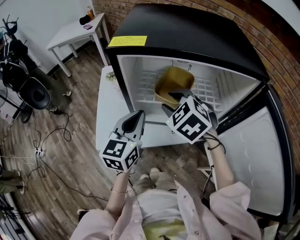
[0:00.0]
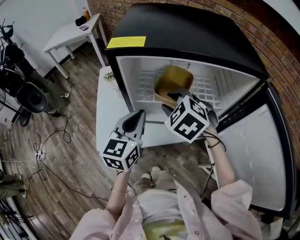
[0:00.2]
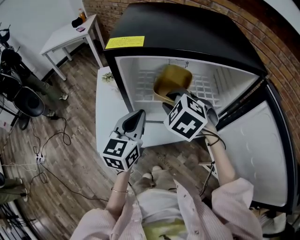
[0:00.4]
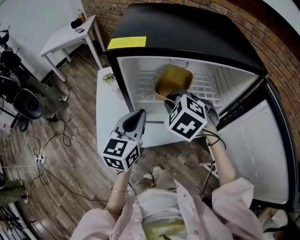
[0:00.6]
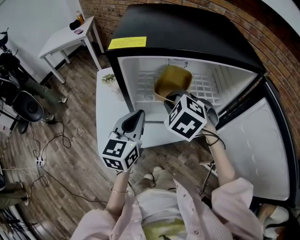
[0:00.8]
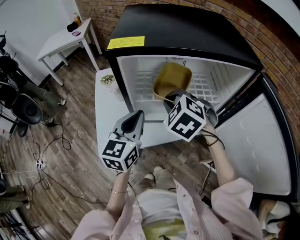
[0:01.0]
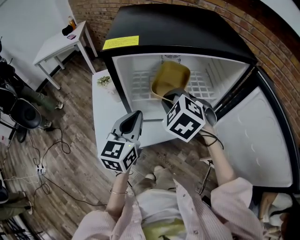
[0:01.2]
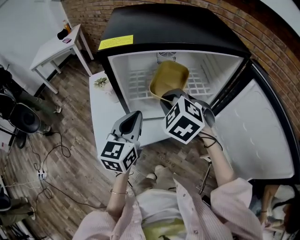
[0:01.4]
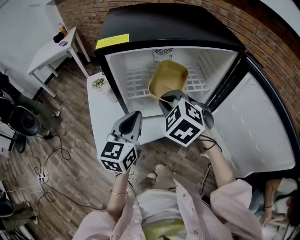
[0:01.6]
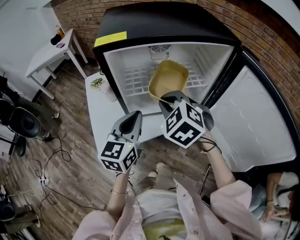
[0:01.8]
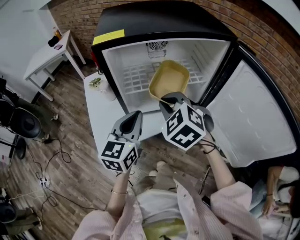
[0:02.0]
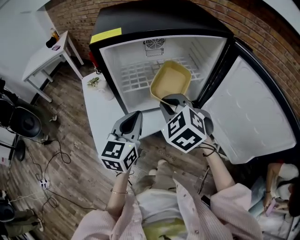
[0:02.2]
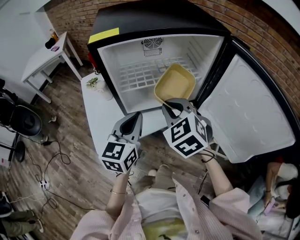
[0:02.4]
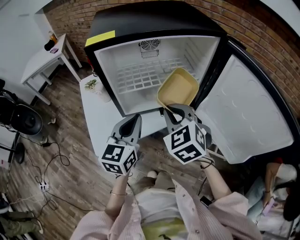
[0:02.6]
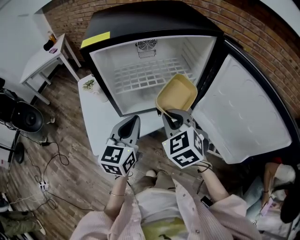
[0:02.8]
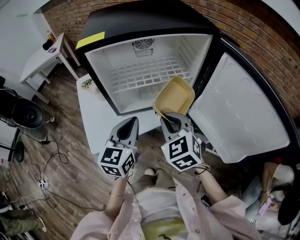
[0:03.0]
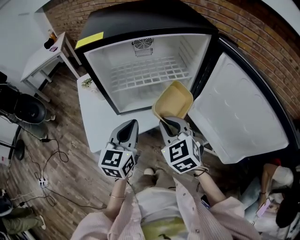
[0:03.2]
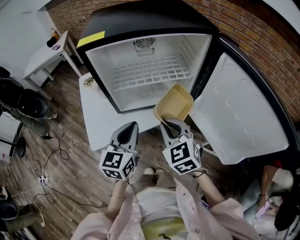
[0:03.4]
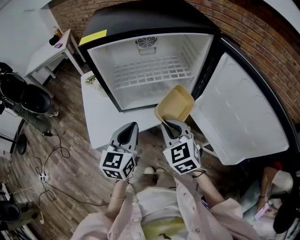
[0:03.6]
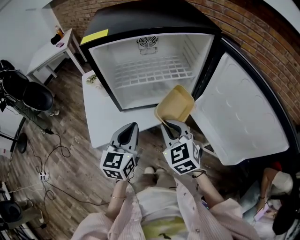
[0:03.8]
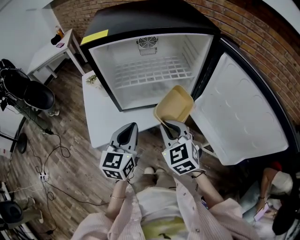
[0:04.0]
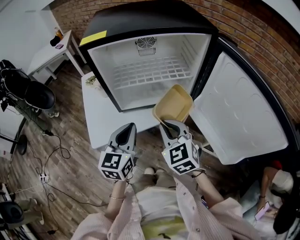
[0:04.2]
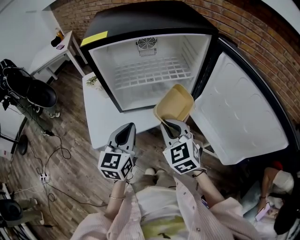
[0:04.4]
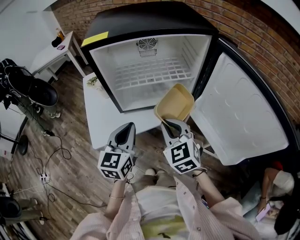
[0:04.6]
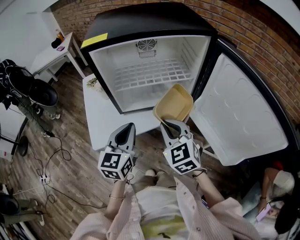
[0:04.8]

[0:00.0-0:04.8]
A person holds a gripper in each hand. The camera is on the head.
0:00.0 to 0:01.6: The right gripper closes.
0:01.6 to 0:03.2: The right gripper travels backward and to the right by about 15 cm, and turns by some 20 degrees, while the left gripper goes about 5 cm backward.
0:03.2 to 0:04.8: The grippers stay close to where they were, moving slightly.

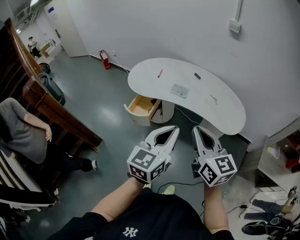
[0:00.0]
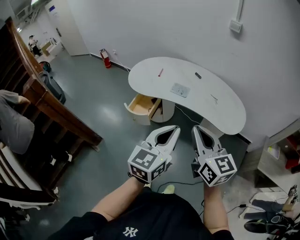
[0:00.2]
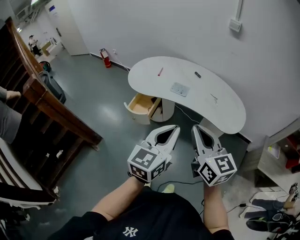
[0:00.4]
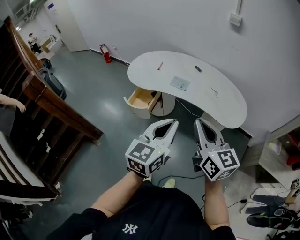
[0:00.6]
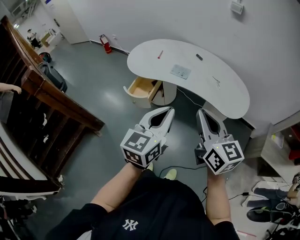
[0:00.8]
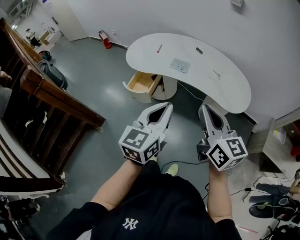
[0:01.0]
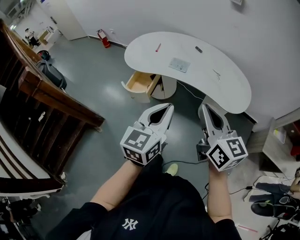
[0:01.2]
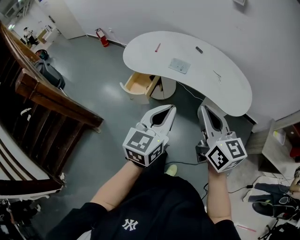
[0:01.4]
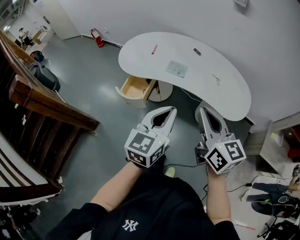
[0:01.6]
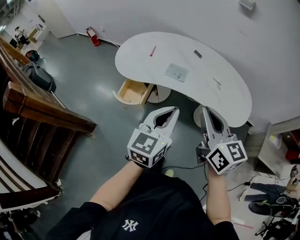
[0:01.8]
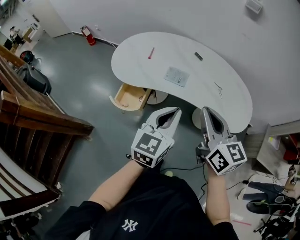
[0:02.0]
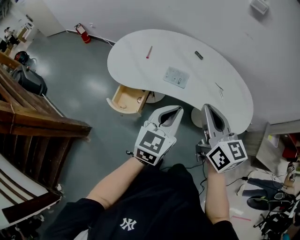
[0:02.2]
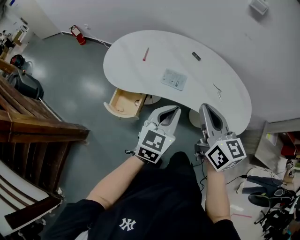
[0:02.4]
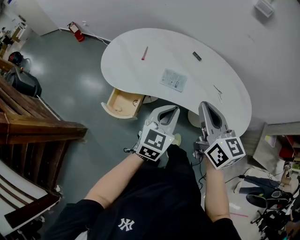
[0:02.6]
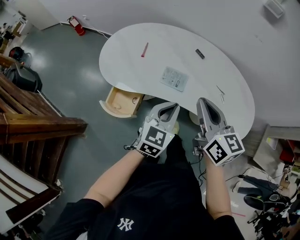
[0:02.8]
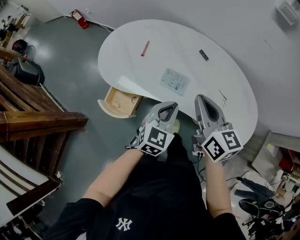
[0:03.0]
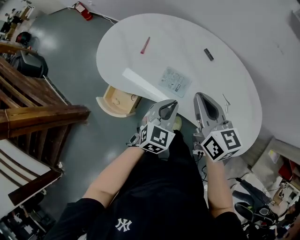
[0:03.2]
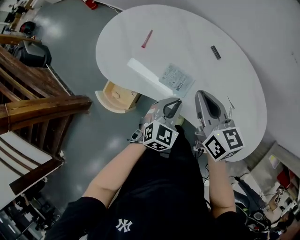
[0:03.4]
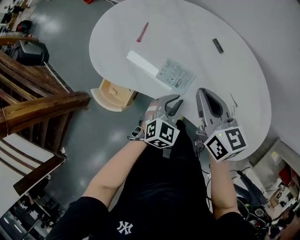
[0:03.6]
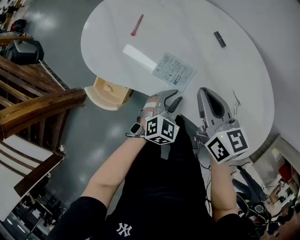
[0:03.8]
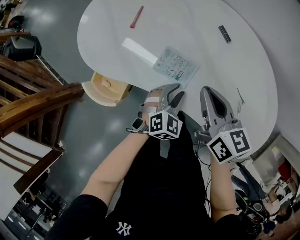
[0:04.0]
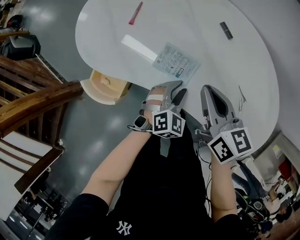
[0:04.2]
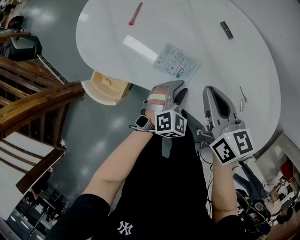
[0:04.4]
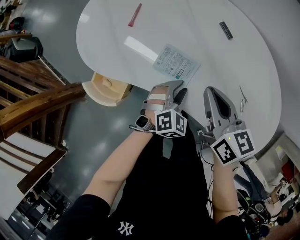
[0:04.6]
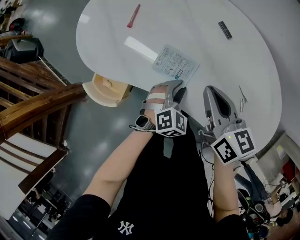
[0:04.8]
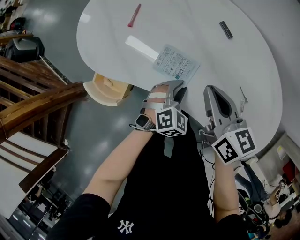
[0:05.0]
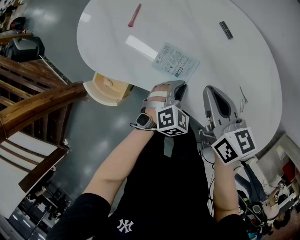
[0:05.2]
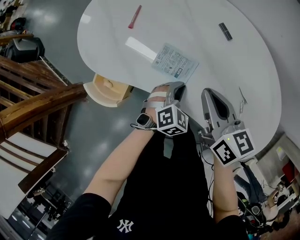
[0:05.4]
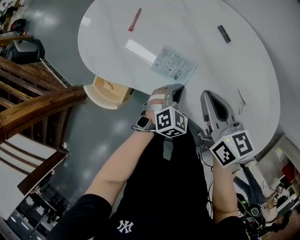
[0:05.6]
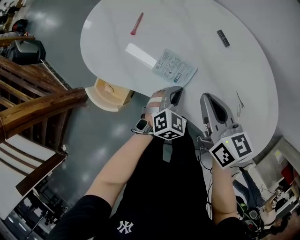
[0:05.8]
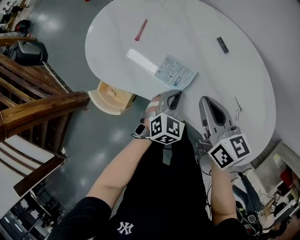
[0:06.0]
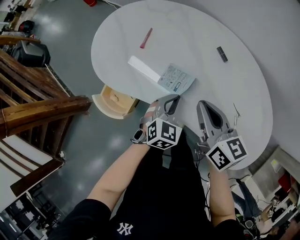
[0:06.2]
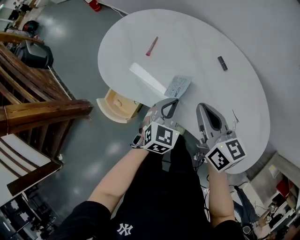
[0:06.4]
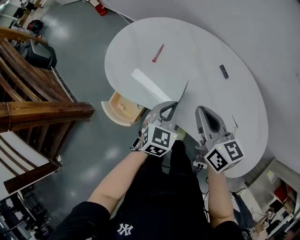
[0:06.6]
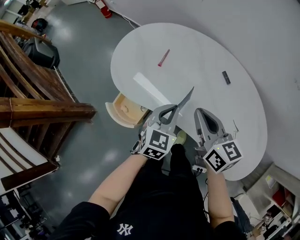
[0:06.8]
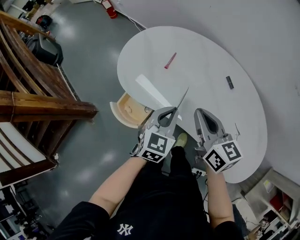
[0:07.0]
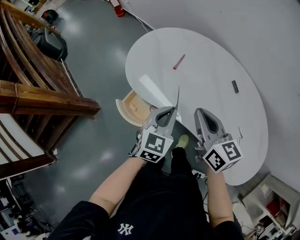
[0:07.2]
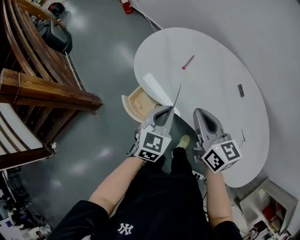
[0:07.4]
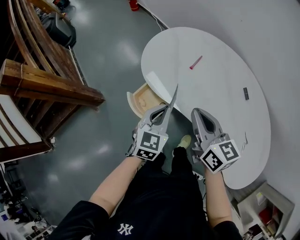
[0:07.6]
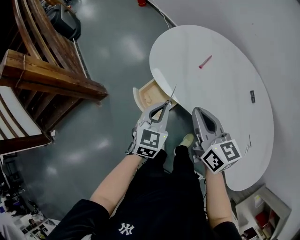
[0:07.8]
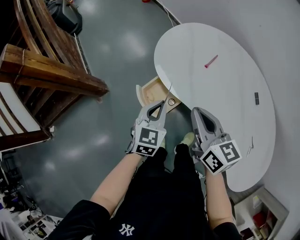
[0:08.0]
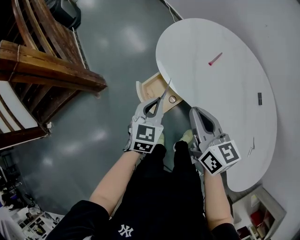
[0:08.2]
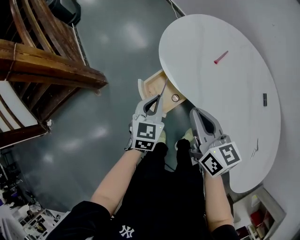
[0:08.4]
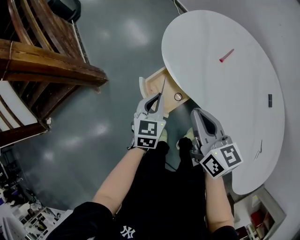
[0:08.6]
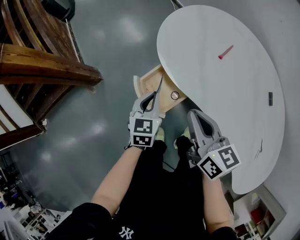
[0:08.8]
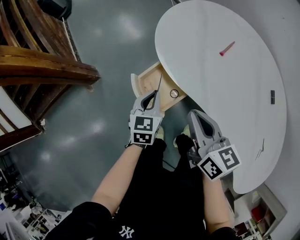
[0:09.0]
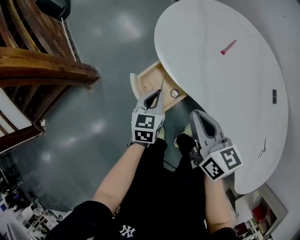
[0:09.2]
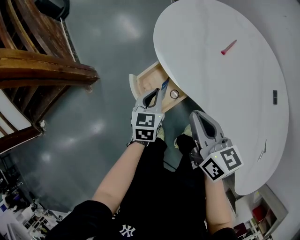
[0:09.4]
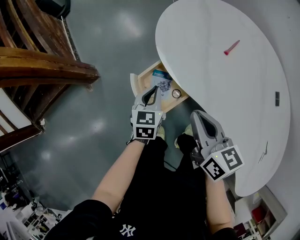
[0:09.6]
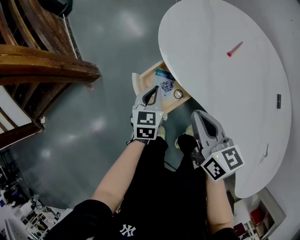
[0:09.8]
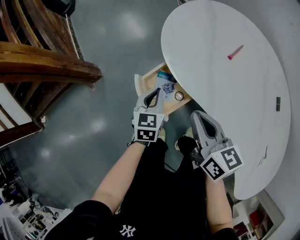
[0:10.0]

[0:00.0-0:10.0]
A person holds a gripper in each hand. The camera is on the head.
0:00.0 to 0:01.4: The left gripper is displaced forward by approximately 5 cm. The right gripper shifts by about 5 cm.
0:01.4 to 0:02.8: The left gripper moves forward and downward, some 35 cm; the right gripper moves forward, roughly 30 cm.
0:02.8 to 0:04.2: Both grippers travel together downward and forward, roughly 25 cm. The left gripper swivels some 30 degrees, and opens its fingers.
0:04.2 to 0:05.8: The left gripper closes up.
0:05.8 to 0:07.2: The left gripper moves upward and to the left, approximately 25 cm, and rotates approximately 30 degrees; the right gripper heads to the left and upward, covering about 15 cm.
0:07.2 to 0:08.6: Both grippers move to the left and downward, roughly 25 cm. The left gripper turns by some 30 degrees.
0:08.6 to 0:10.0: The two grippers go roughly 10 cm downward.

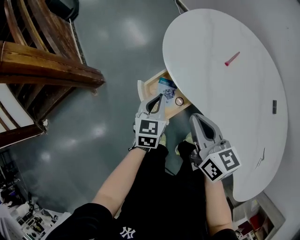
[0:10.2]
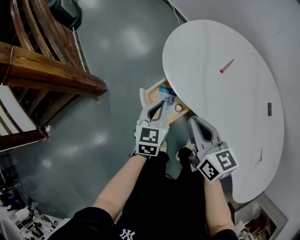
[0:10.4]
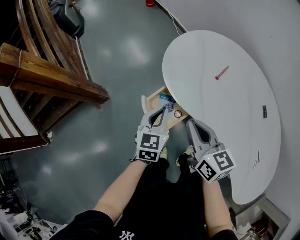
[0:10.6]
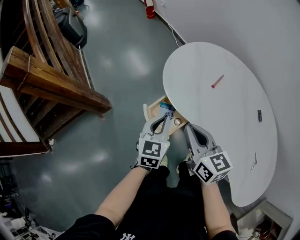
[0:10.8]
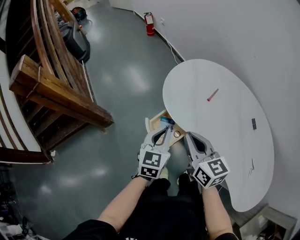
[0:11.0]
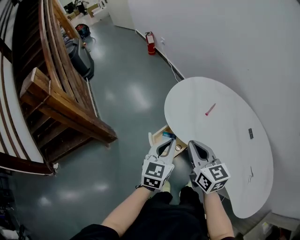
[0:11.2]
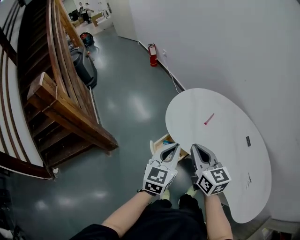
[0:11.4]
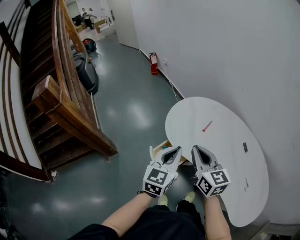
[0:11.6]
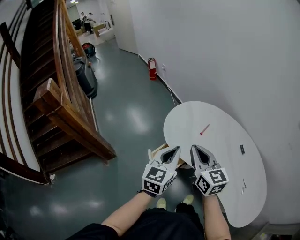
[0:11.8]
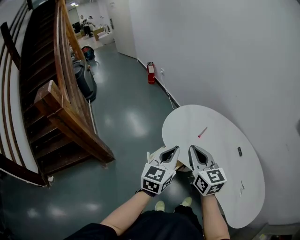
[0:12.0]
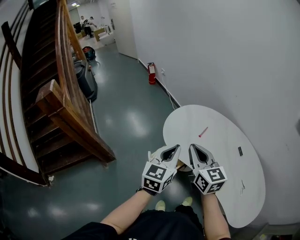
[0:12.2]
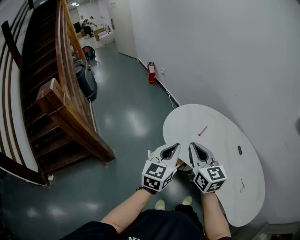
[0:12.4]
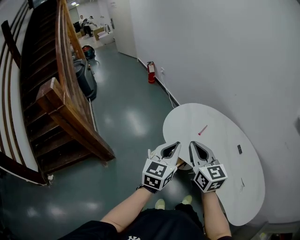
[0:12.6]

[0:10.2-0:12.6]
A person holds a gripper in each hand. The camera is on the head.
0:10.2 to 0:11.4: The right gripper shifts roughly 20 cm upward. The left gripper heads upward, covering some 30 cm, and turns by about 20 degrees.
0:11.4 to 0:12.6: The grippers both shift upward by roughly 5 cm.

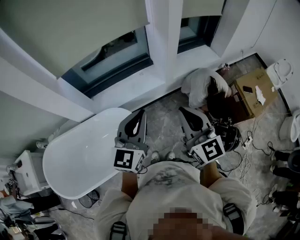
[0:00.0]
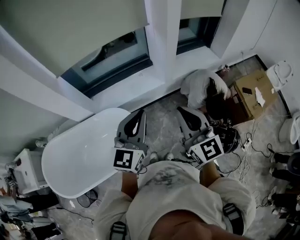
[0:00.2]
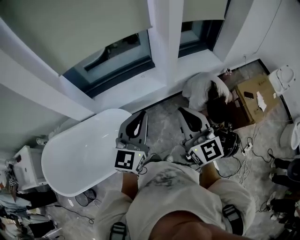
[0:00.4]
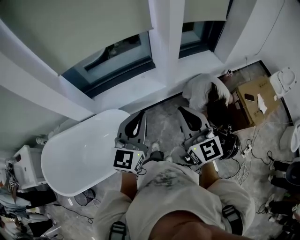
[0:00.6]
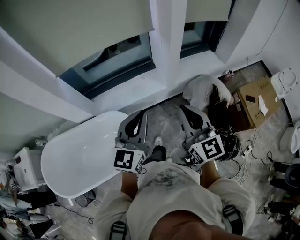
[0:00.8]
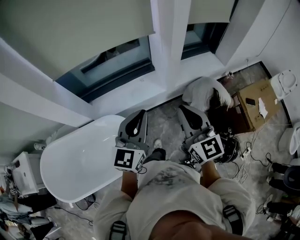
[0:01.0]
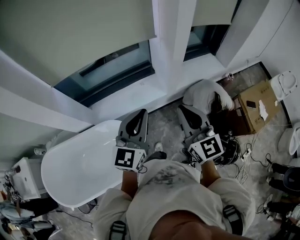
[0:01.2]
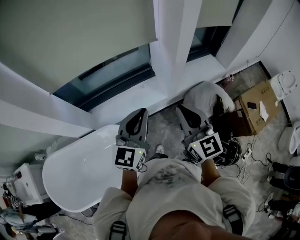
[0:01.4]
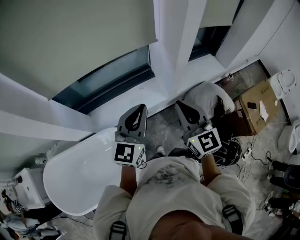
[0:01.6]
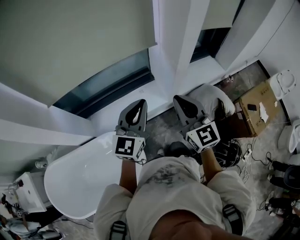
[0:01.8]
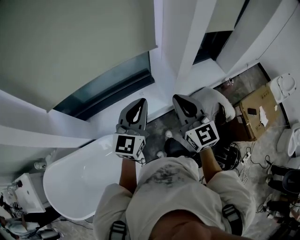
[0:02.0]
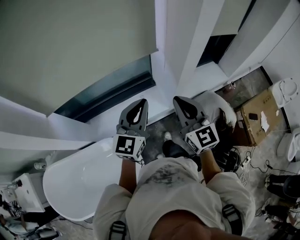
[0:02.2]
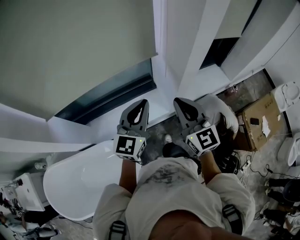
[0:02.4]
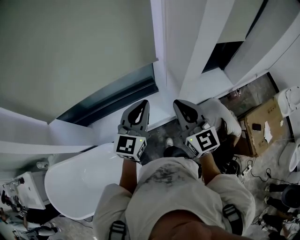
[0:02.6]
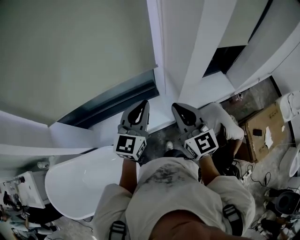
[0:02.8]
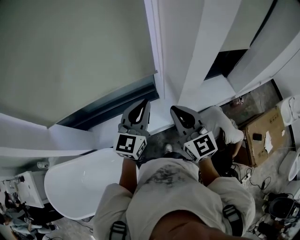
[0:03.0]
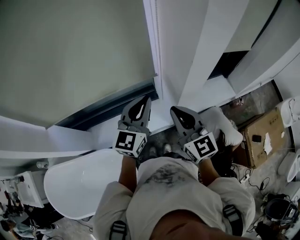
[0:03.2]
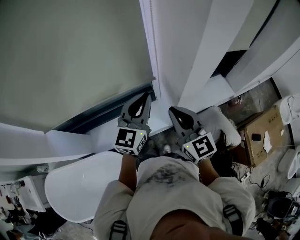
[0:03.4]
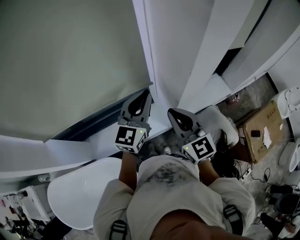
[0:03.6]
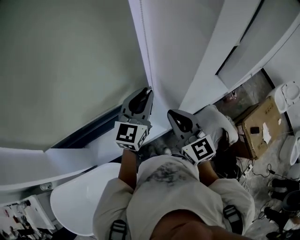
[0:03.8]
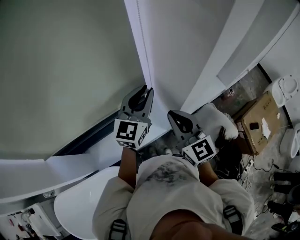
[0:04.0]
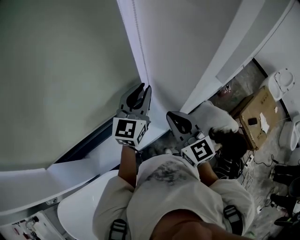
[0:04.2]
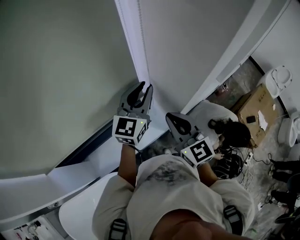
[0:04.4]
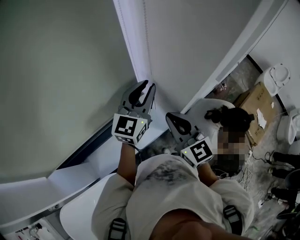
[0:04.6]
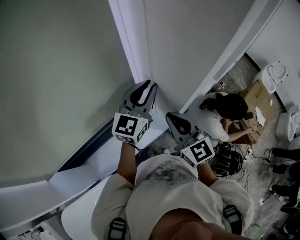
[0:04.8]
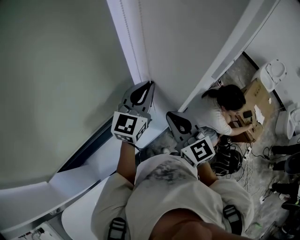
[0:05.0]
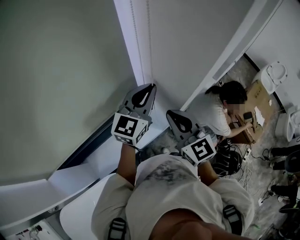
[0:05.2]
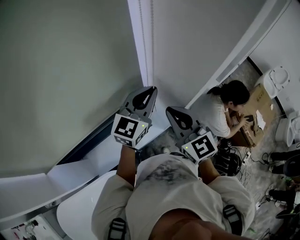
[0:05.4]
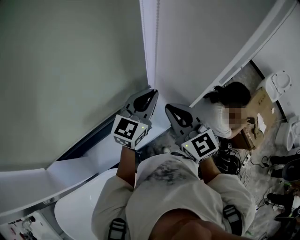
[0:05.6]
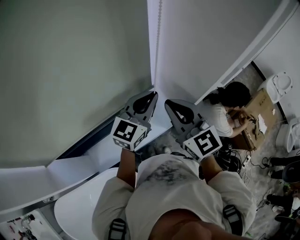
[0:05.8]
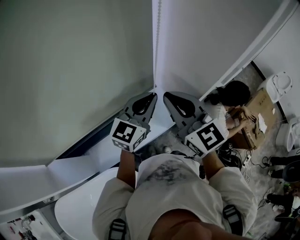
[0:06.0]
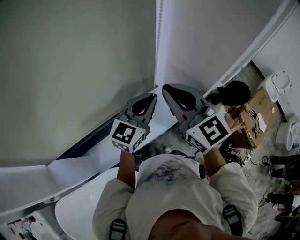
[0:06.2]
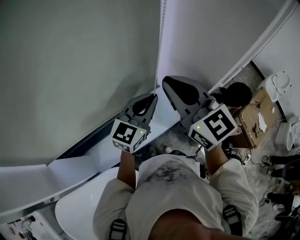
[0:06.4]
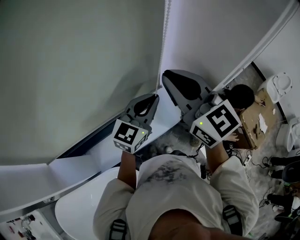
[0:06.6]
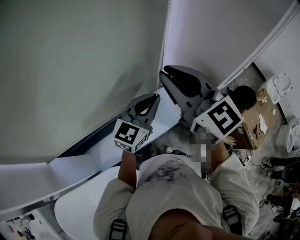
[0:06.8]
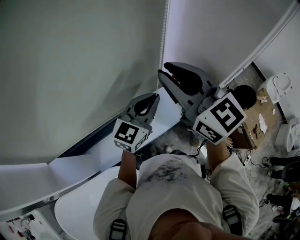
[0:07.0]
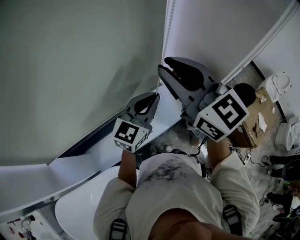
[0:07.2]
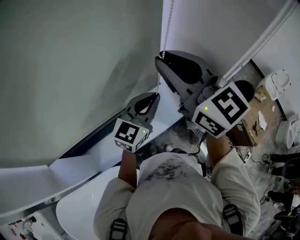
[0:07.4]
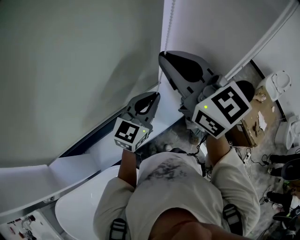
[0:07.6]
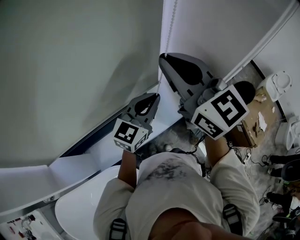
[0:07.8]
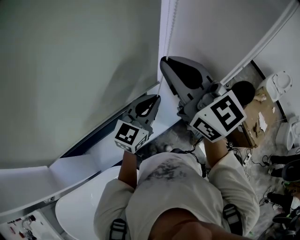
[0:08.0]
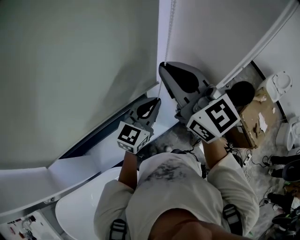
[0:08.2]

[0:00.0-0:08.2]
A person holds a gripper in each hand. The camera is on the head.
0:00.0 to 0:01.6: Both grippers move forward, approximately 25 cm.
0:01.6 to 0:03.2: Both grippers move forward, about 25 cm.
0:03.2 to 0:05.0: The left gripper heads forward and to the right, covering roughly 15 cm, and swivels about 20 degrees, while the right gripper goes about 5 cm forward.
0:05.0 to 0:06.6: The left gripper is displaced backward and to the left by approximately 10 cm. The right gripper is displaced upward and to the left by some 20 cm.
0:06.6 to 0:08.2: The grippers move only a little.
